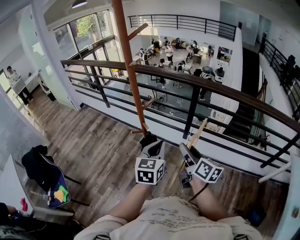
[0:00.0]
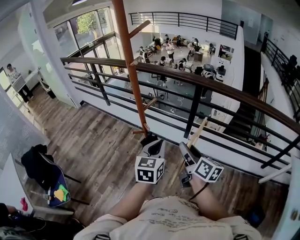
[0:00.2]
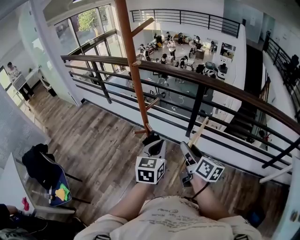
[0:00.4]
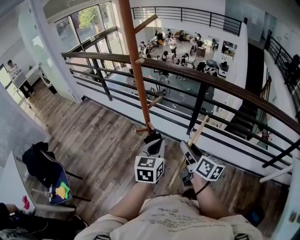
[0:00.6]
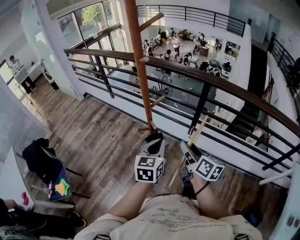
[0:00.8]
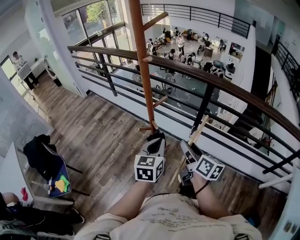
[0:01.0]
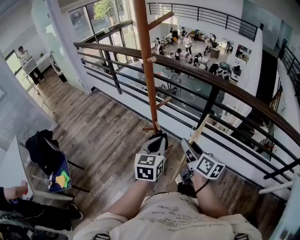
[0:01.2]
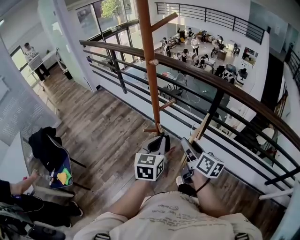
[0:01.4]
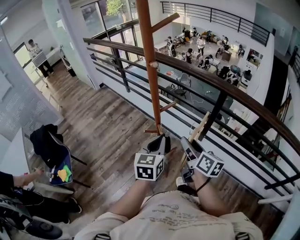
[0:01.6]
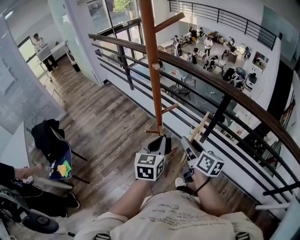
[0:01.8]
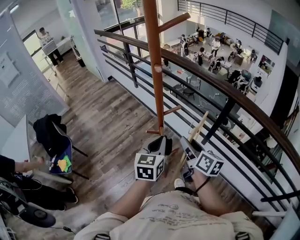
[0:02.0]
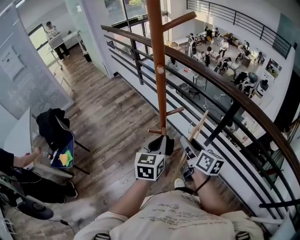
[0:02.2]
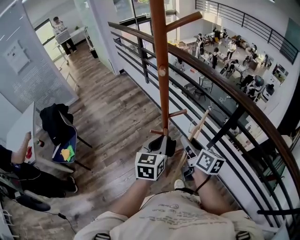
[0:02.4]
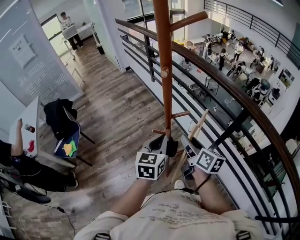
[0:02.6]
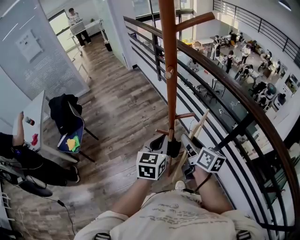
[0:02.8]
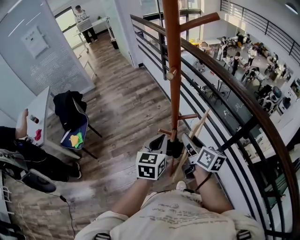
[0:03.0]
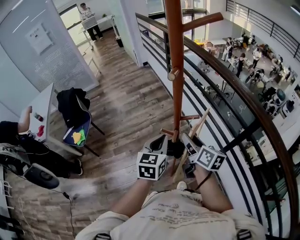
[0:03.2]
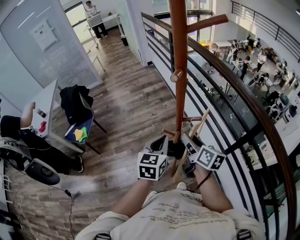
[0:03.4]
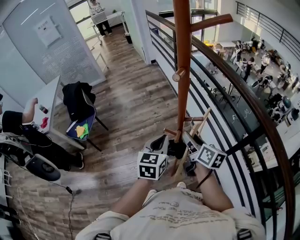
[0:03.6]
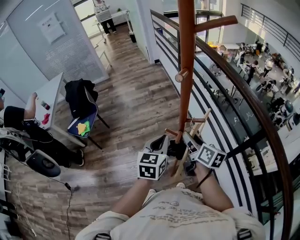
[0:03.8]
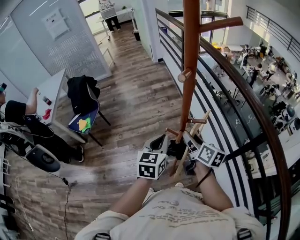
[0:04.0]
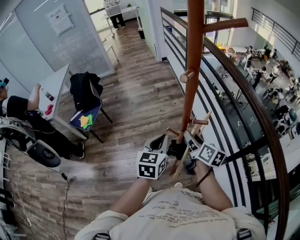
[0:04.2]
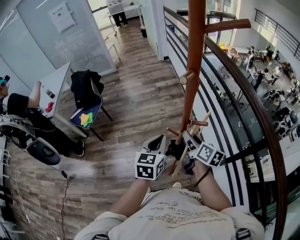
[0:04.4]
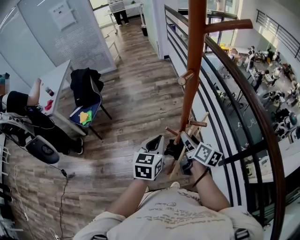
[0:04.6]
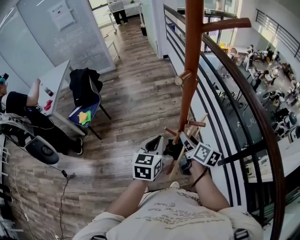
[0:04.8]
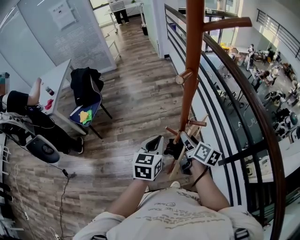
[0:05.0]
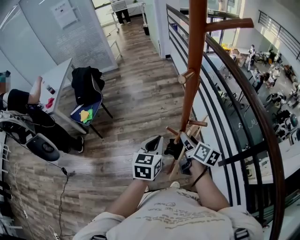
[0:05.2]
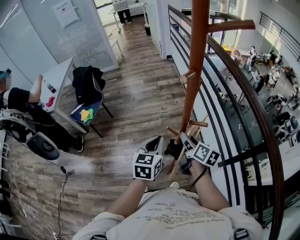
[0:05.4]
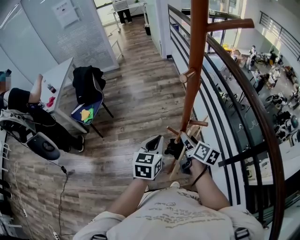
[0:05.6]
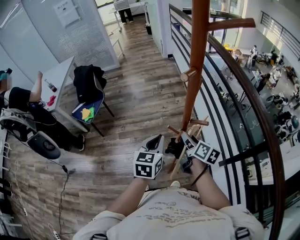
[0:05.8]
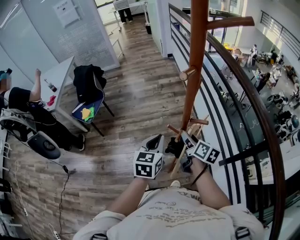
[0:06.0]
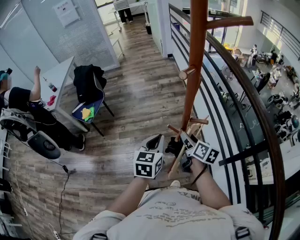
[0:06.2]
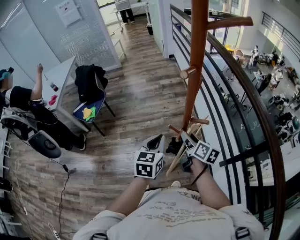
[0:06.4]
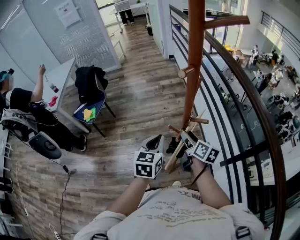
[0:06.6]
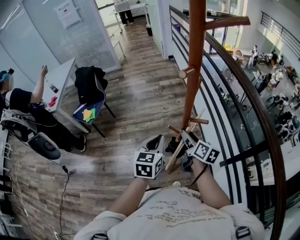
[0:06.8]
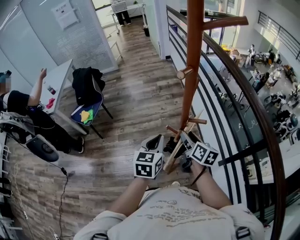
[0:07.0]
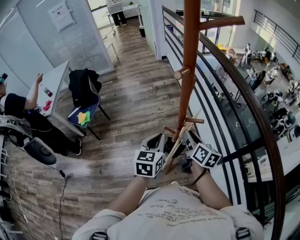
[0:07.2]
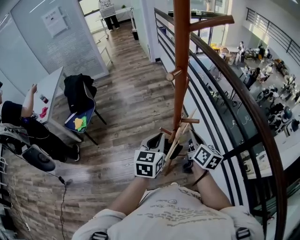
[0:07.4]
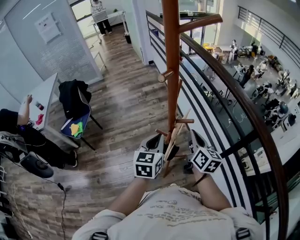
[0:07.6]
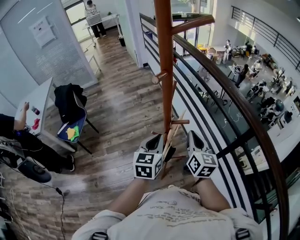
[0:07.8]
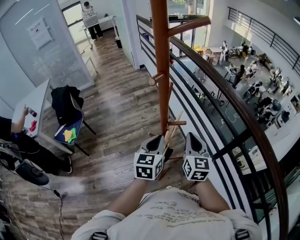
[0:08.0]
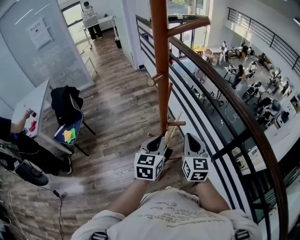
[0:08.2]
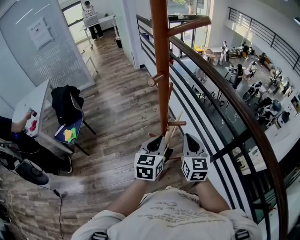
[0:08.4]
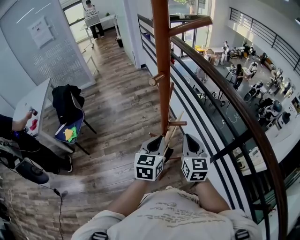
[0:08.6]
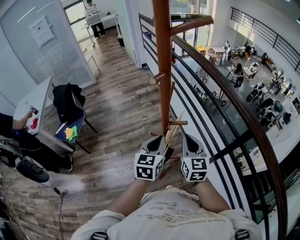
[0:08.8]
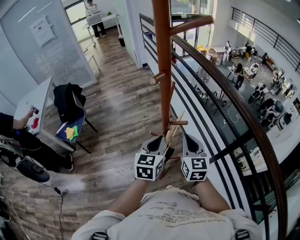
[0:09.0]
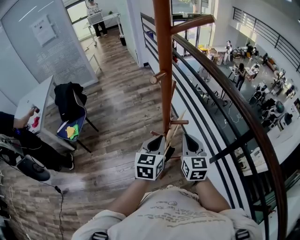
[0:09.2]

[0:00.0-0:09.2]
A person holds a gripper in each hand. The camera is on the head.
0.0 to 1.6 s: The grippers both shift forward by some 10 cm.
1.6 to 3.0 s: The right gripper goes about 10 cm forward, and changes its angle by approximately 20 degrees. Meanwhile the left gripper goes about 5 cm forward, and rotates some 20 degrees.
3.0 to 4.6 s: The right gripper travels forward by roughly 5 cm.
4.6 to 6.2 s: The grippers make only small movements.
6.2 to 7.6 s: The right gripper heads upward and to the right, covering roughly 10 cm, changes its angle by some 20 degrees, and closes, while the left gripper moves about 5 cm.
7.6 to 9.2 s: The right gripper rotates approximately 30 degrees.

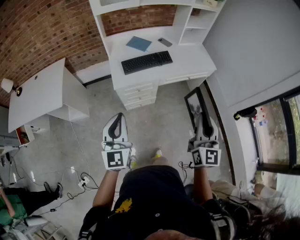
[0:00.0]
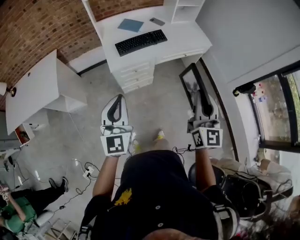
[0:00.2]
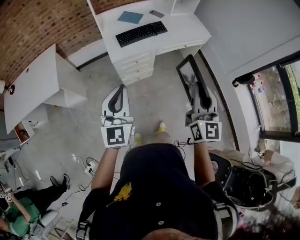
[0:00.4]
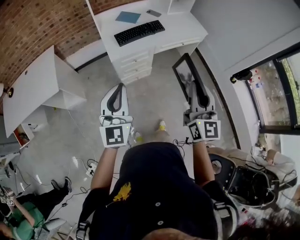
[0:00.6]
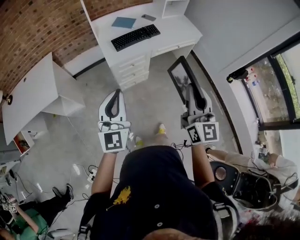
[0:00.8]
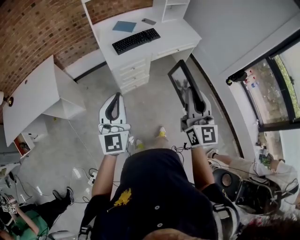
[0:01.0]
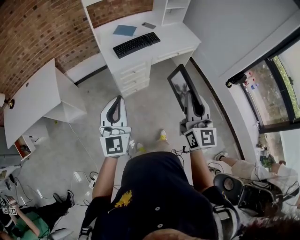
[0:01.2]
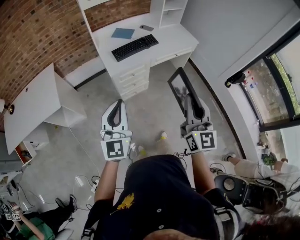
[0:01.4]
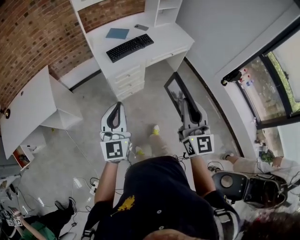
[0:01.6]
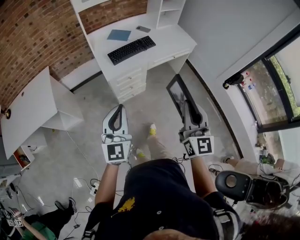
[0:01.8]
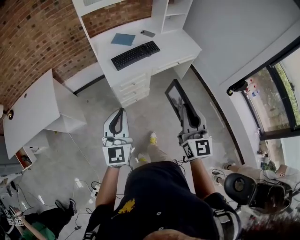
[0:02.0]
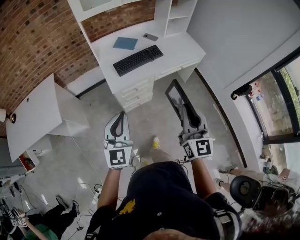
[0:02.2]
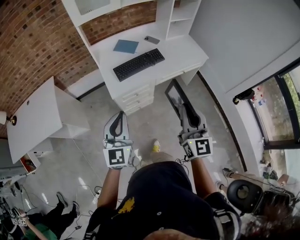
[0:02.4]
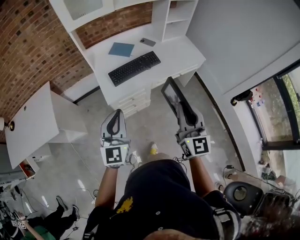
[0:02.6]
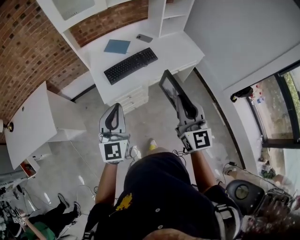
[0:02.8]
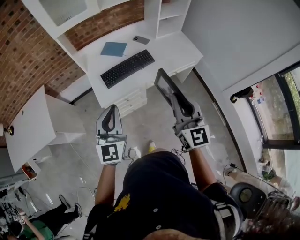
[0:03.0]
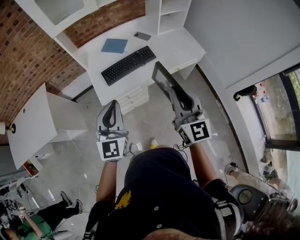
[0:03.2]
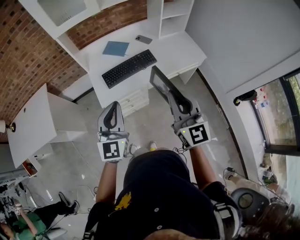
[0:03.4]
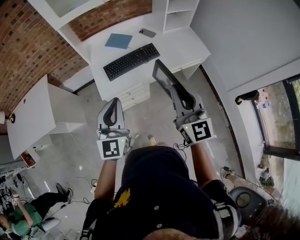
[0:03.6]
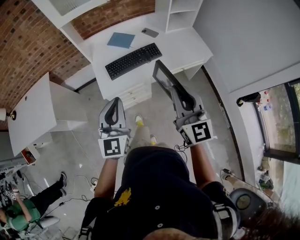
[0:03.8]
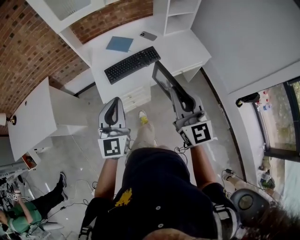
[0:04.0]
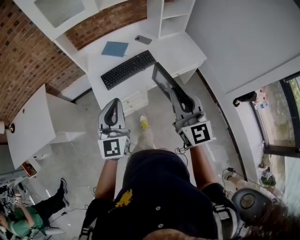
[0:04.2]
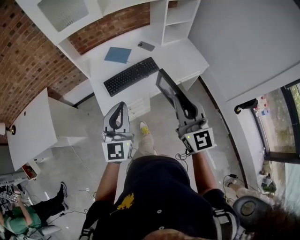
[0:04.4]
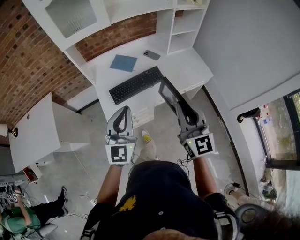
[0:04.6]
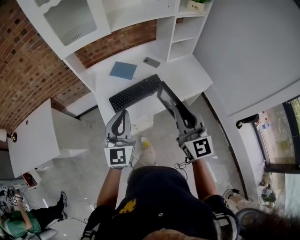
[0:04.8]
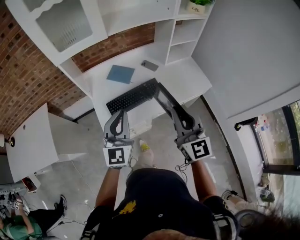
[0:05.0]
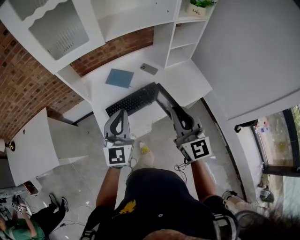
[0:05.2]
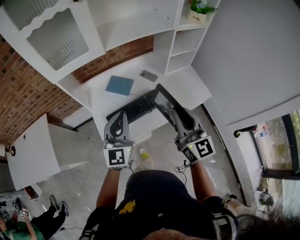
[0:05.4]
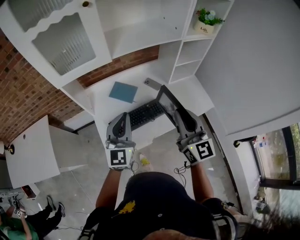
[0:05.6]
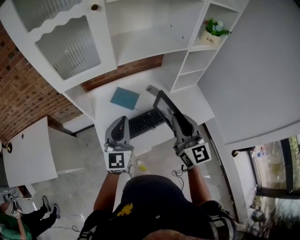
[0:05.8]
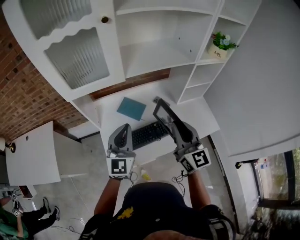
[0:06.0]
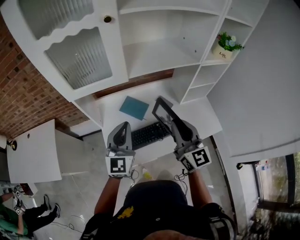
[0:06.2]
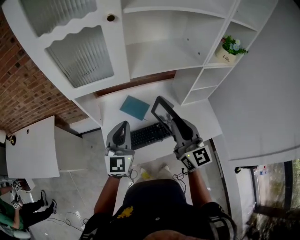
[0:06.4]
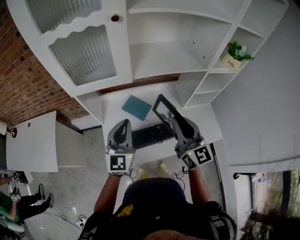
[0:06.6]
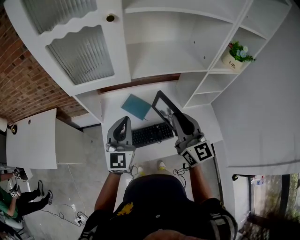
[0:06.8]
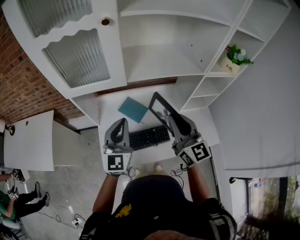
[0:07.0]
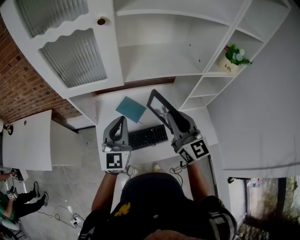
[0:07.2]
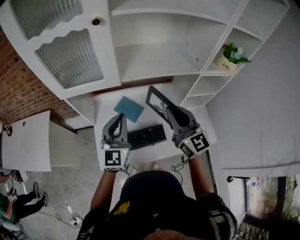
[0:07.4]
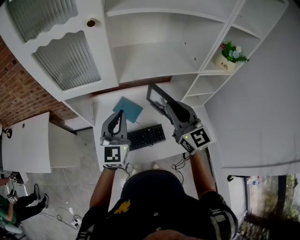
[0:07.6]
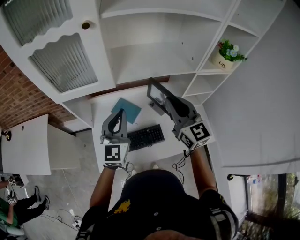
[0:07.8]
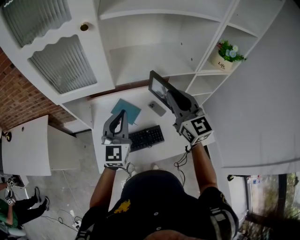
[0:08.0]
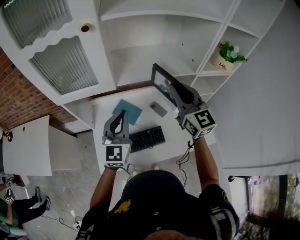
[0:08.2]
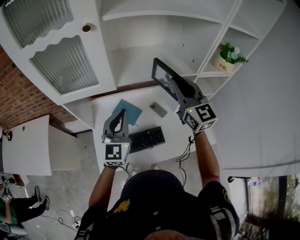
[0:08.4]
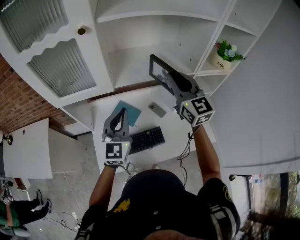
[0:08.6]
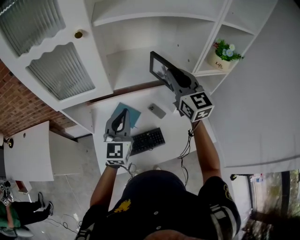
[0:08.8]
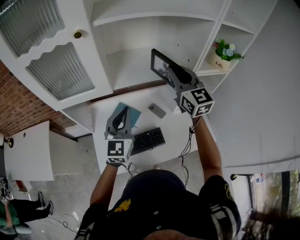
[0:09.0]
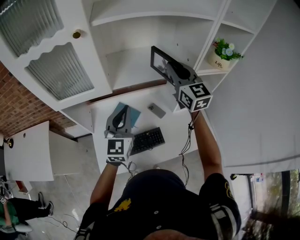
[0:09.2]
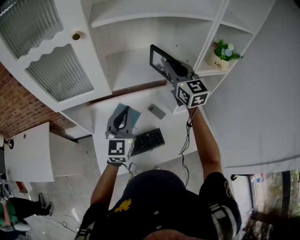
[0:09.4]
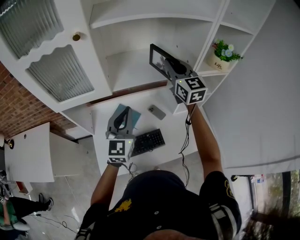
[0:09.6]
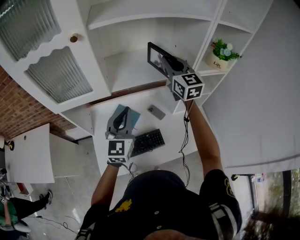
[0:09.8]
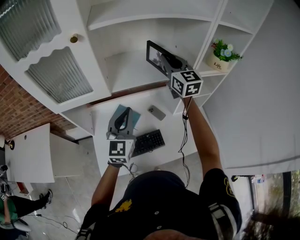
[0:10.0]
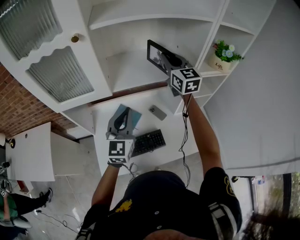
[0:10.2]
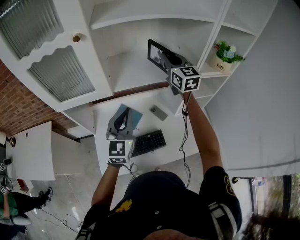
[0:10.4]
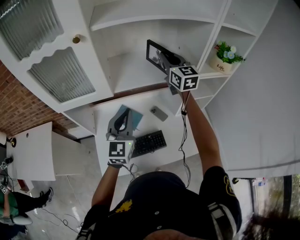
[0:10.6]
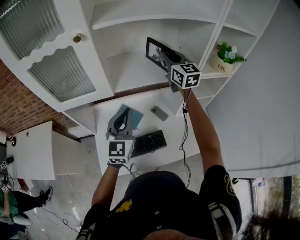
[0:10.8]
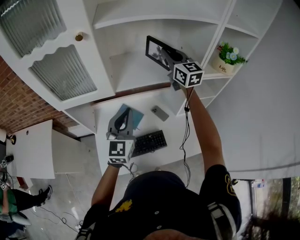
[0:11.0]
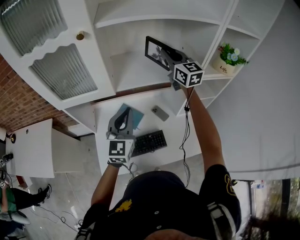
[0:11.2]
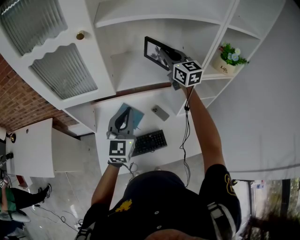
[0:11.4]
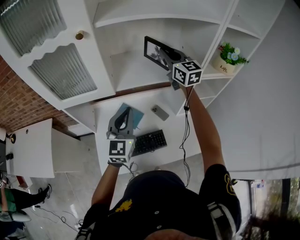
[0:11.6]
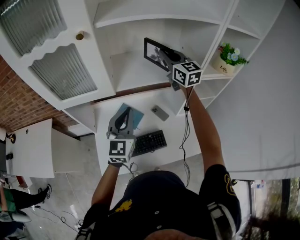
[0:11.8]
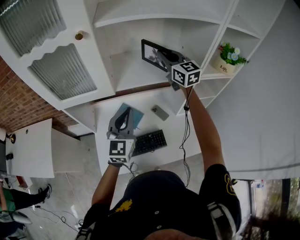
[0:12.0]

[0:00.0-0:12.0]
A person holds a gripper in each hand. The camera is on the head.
0.0 to 1.6 s: The left gripper shifts some 10 cm backward and to the left; the right gripper shifts some 20 cm to the left and backward.
1.6 to 3.0 s: The grippers both shift forward by about 30 cm.
3.0 to 4.4 s: The left gripper travels forward and to the right by some 10 cm. Meanwhile the right gripper travels forward by about 5 cm.
4.4 to 6.0 s: Both grippers move forward, about 30 cm.
6.0 to 7.6 s: The grippers both shift forward by roughly 10 cm.
7.6 to 9.0 s: The left gripper ends up about 5 cm from where it was; the right gripper moves forward, upward and to the right, some 15 cm.
9.0 to 10.4 s: The right gripper shifts roughly 10 cm forward.
10.4 to 12.0 s: The grippers move only a little.

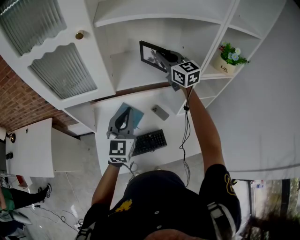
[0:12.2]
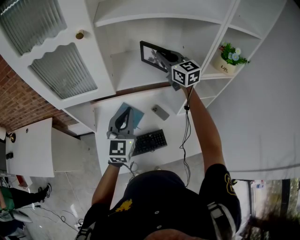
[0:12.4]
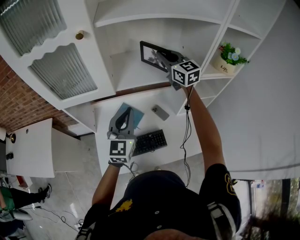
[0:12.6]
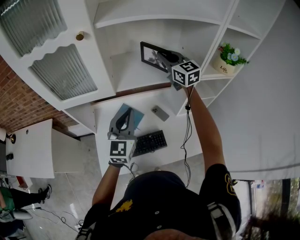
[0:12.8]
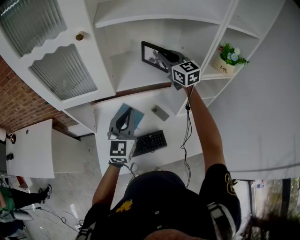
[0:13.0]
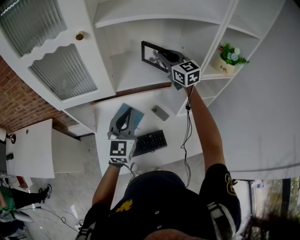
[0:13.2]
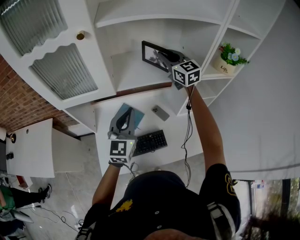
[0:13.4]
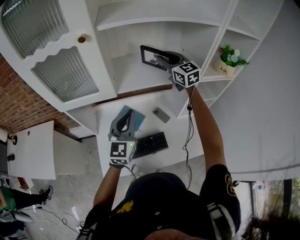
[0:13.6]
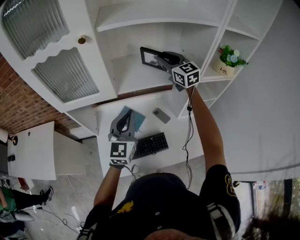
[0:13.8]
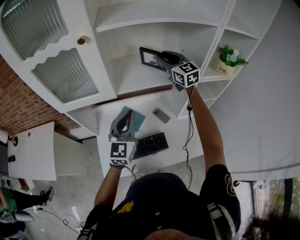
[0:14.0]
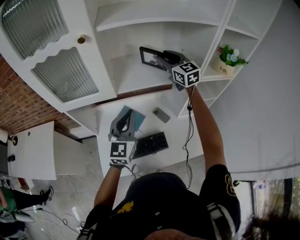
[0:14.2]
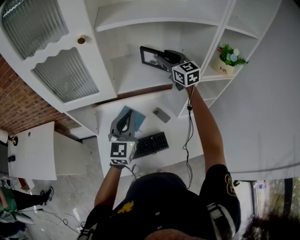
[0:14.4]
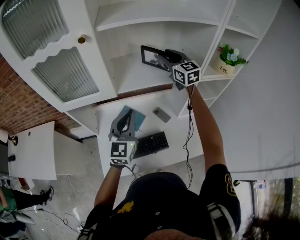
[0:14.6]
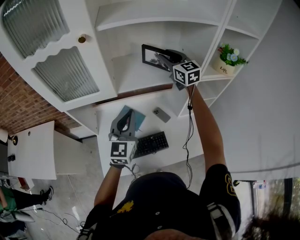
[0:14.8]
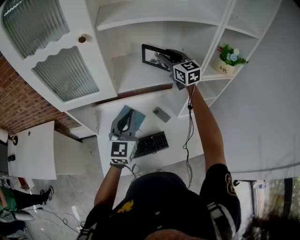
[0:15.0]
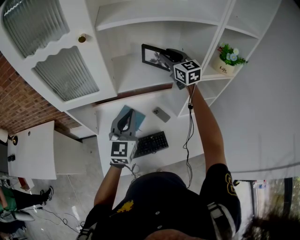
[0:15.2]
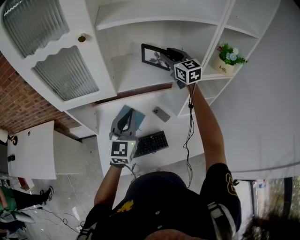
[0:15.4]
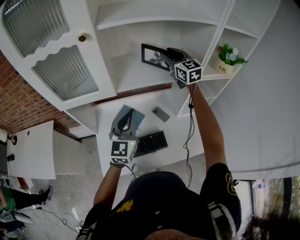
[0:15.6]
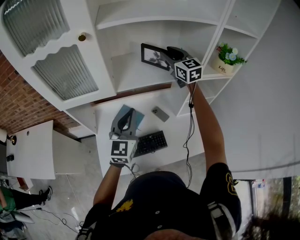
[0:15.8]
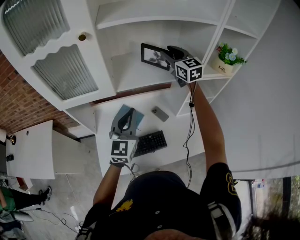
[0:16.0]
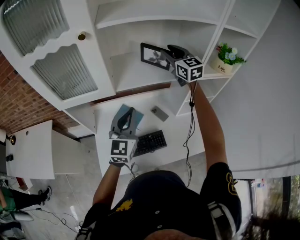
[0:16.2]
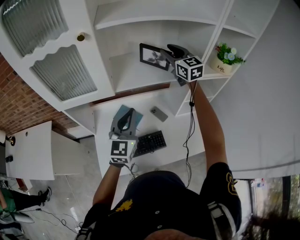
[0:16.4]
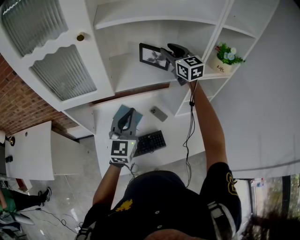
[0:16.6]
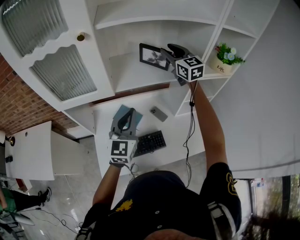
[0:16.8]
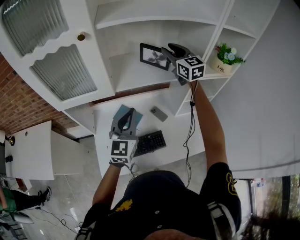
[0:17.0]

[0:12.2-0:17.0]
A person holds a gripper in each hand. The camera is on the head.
12.2 to 17.0 s: There are only small adjustments of the grippers.
